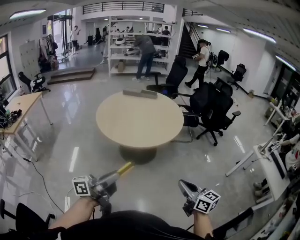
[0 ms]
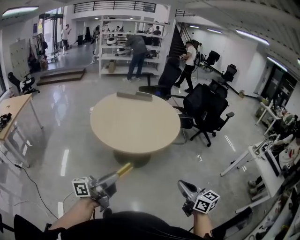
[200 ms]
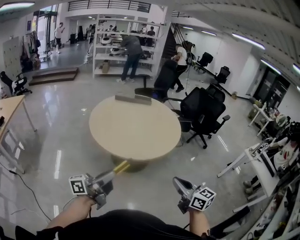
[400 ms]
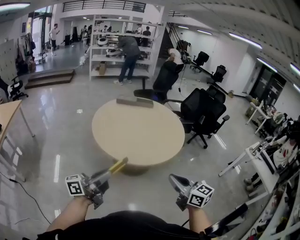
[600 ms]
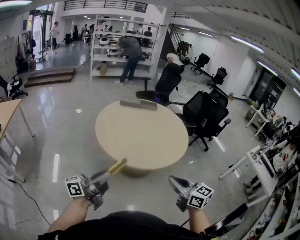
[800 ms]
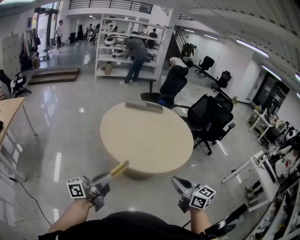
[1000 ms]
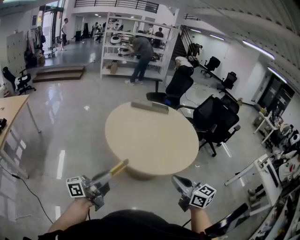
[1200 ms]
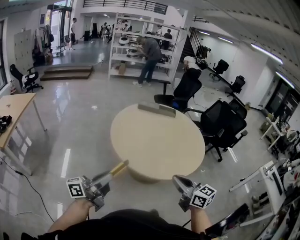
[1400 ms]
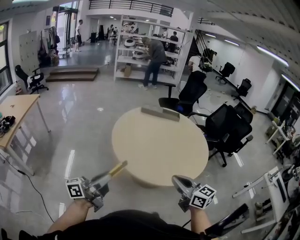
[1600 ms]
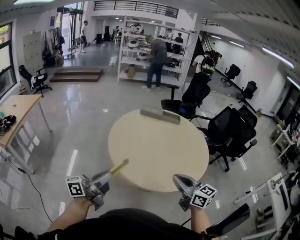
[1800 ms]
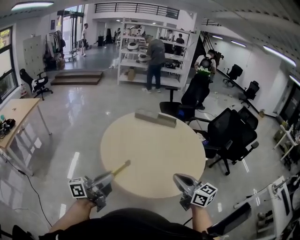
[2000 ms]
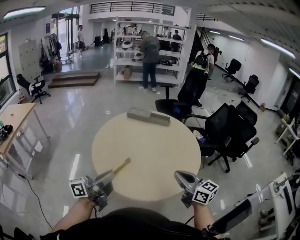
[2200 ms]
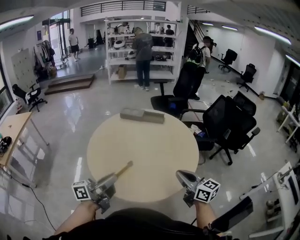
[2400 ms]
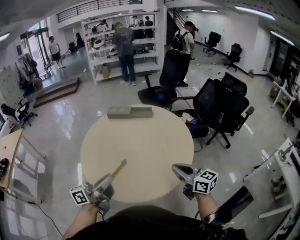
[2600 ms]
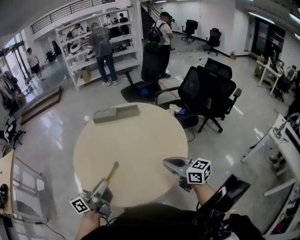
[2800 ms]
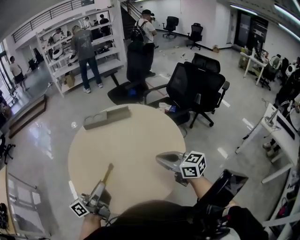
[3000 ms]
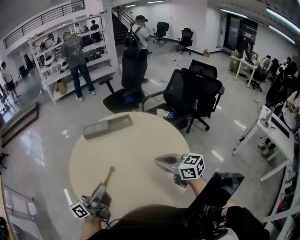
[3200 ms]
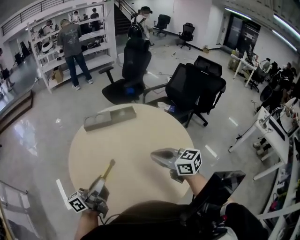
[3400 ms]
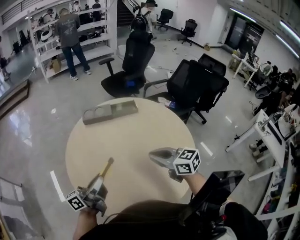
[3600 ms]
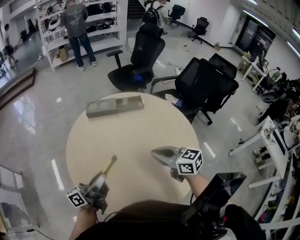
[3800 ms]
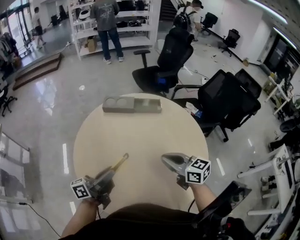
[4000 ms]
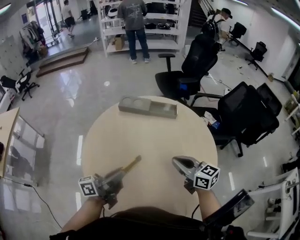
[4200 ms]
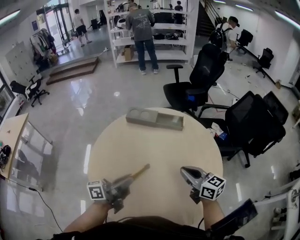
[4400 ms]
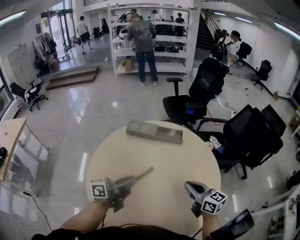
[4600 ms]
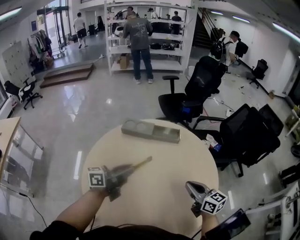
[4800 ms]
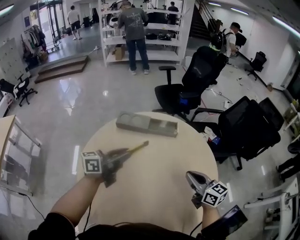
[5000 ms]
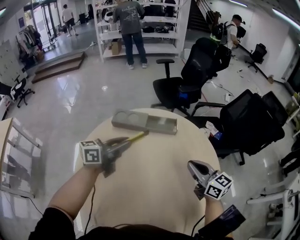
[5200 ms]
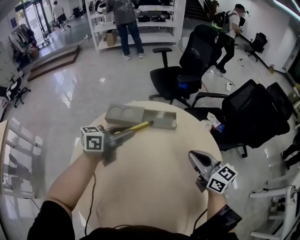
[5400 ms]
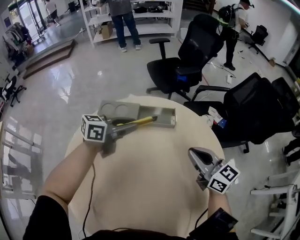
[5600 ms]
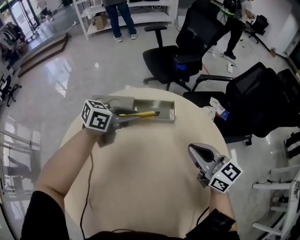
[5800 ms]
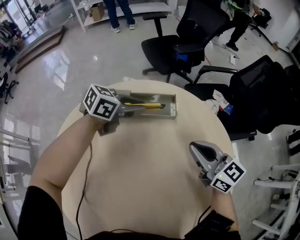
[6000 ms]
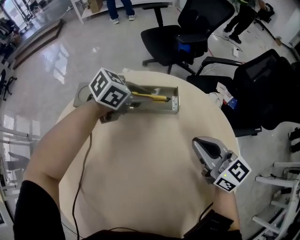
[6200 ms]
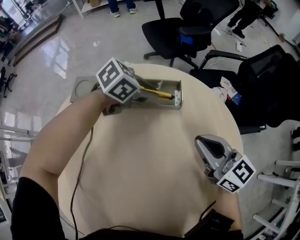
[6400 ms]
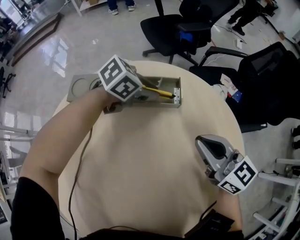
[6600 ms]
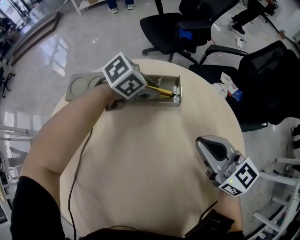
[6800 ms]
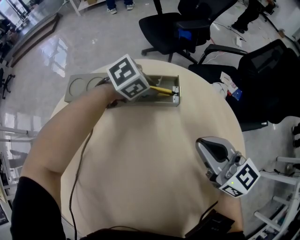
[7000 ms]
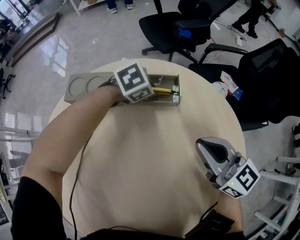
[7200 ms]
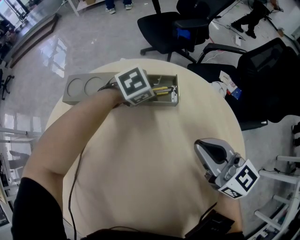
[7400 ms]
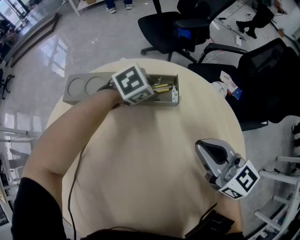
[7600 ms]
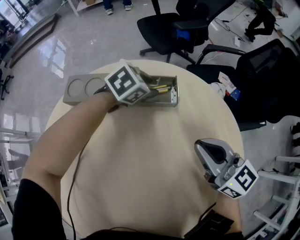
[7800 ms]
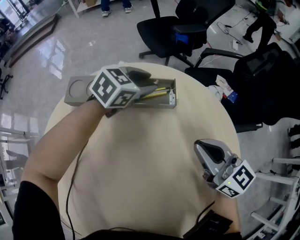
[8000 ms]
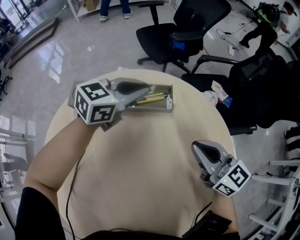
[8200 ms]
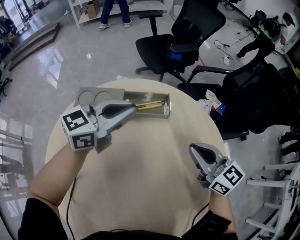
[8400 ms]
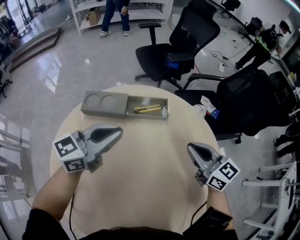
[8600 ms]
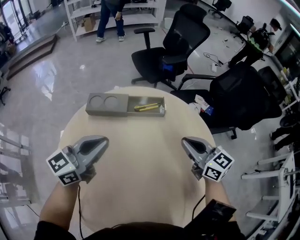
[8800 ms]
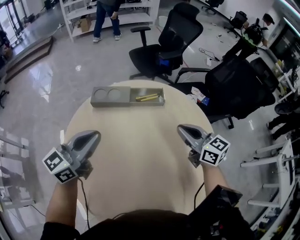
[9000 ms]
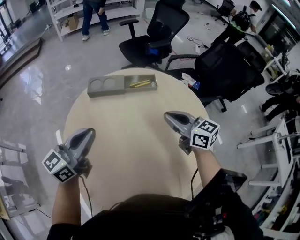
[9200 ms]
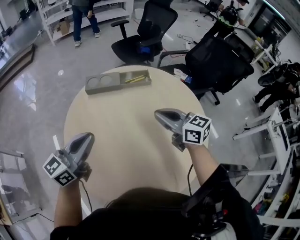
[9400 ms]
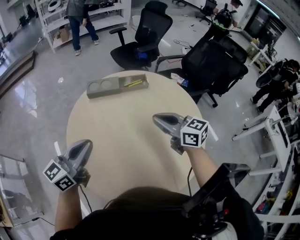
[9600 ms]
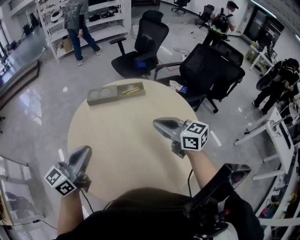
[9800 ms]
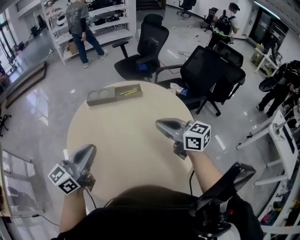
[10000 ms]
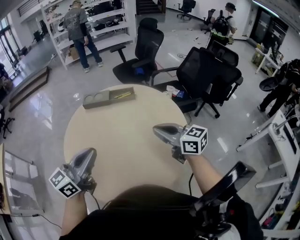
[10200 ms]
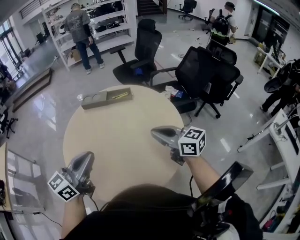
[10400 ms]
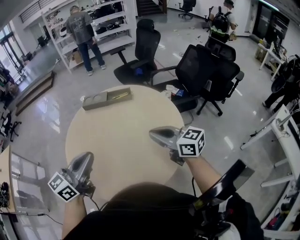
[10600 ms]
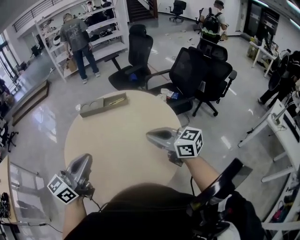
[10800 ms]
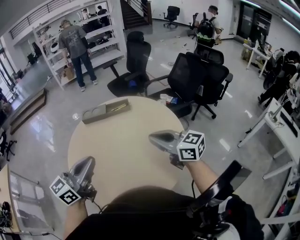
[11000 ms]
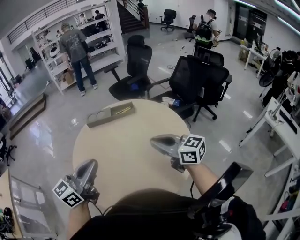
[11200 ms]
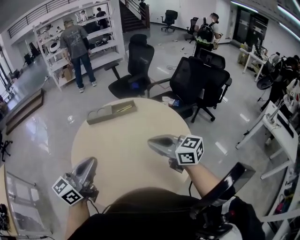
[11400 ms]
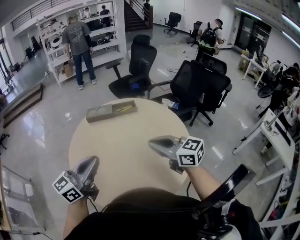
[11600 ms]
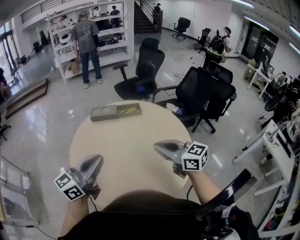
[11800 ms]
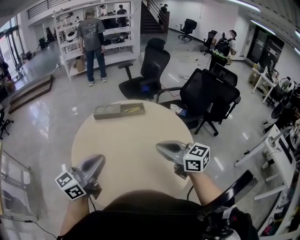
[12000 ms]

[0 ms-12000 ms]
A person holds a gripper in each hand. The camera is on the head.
0 ms to 1600 ms: The pair of grippers is taken to the left and forward, some 50 cm.
1600 ms to 3000 ms: Both grippers move forward and to the right, about 35 cm.
3000 ms to 4400 ms: The grippers both shift forward by about 20 cm.
4400 ms to 6000 ms: The right gripper is displaced forward and downward by approximately 30 cm. Meanwhile the left gripper heads forward, covering some 50 cm, and tilts its fingers some 30 degrees downward.
6000 ms to 7600 ms: The left gripper shifts about 15 cm downward, tilts its fingers about 30 degrees downward, and opens.
7600 ms to 9000 ms: The left gripper travels upward, backward and to the left by roughly 50 cm, points its fingers approximately 60 degrees further upward, and closes up; the right gripper is displaced upward and backward by approximately 20 cm.
9000 ms to 10400 ms: The left gripper moves backward and to the right, some 35 cm. Meanwhile the right gripper travels backward by some 25 cm.
10400 ms to 12000 ms: The grippers both shift to the left by roughly 10 cm.

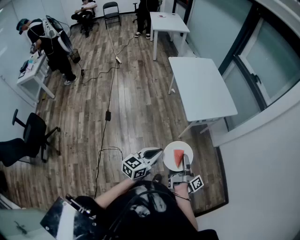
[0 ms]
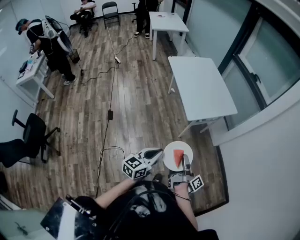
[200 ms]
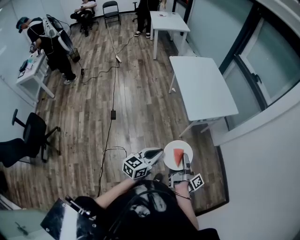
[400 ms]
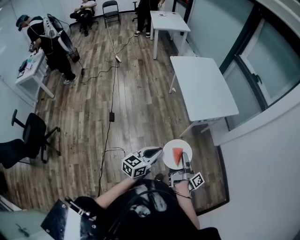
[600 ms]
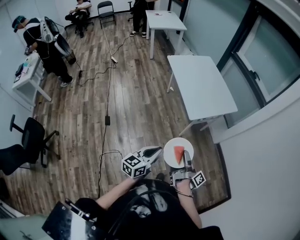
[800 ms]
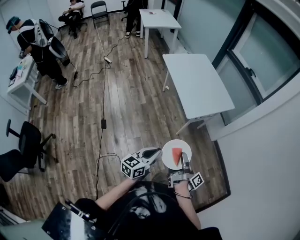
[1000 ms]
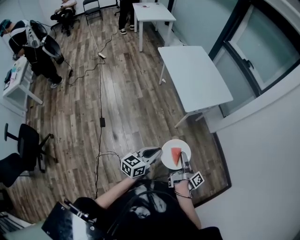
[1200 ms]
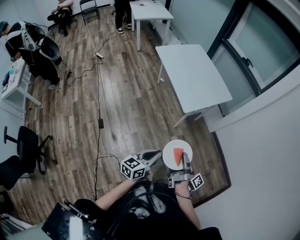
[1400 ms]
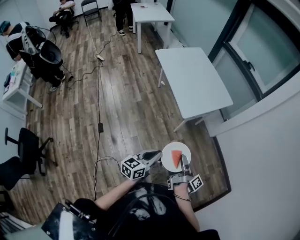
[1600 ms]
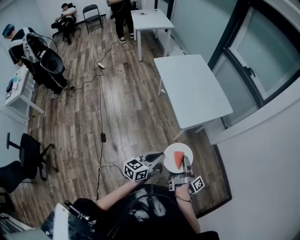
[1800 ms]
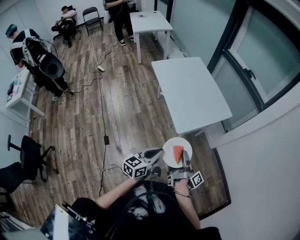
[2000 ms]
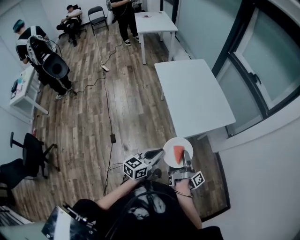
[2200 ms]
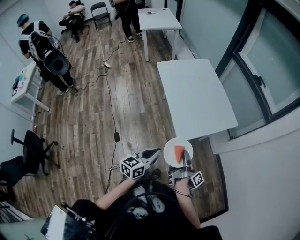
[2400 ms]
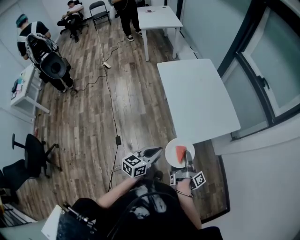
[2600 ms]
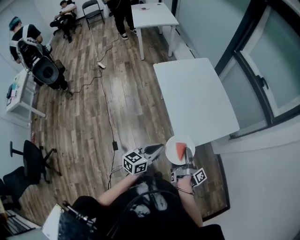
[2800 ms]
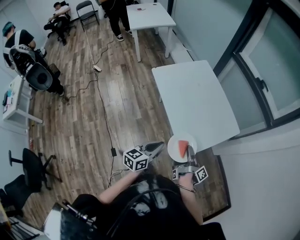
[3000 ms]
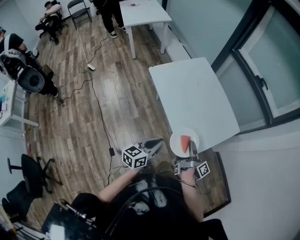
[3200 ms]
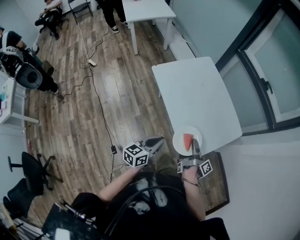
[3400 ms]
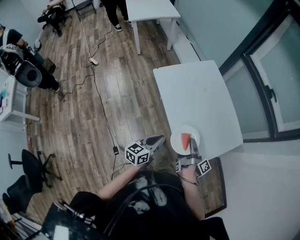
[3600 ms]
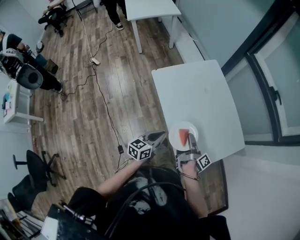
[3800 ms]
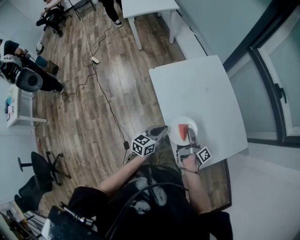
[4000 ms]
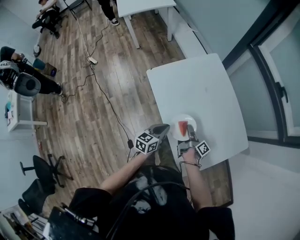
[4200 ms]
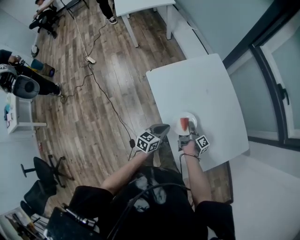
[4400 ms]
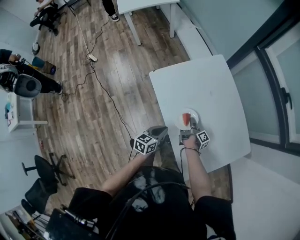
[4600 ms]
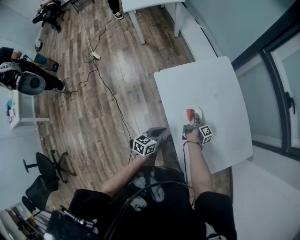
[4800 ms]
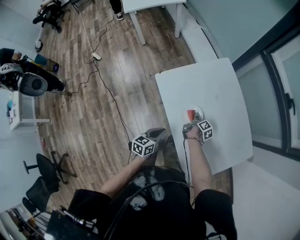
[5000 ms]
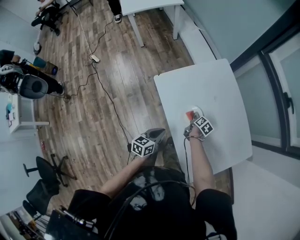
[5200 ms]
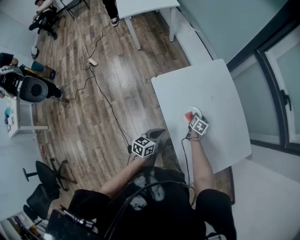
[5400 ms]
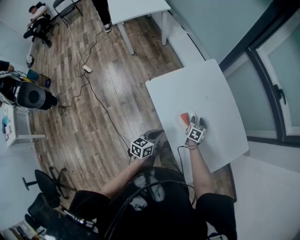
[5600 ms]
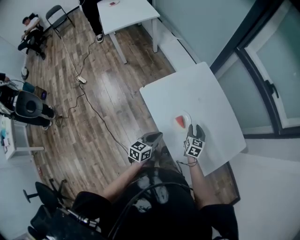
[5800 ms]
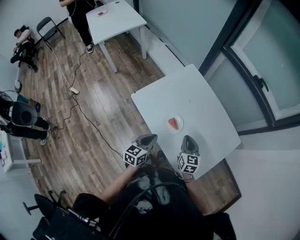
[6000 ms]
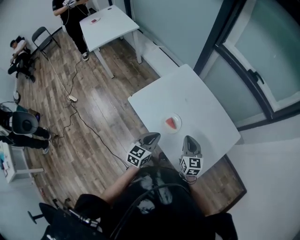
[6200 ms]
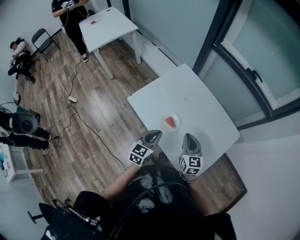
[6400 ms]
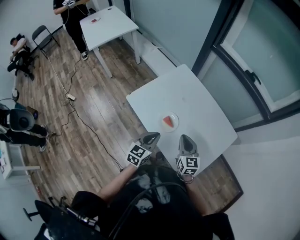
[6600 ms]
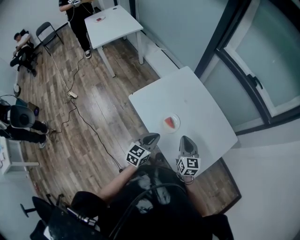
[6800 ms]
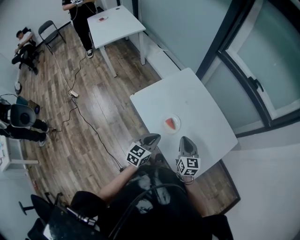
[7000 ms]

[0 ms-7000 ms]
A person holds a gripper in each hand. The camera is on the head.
0 ms to 1400 ms: The left gripper moves approximately 5 cm.
1400 ms to 2800 ms: The left gripper moves about 35 cm.
2800 ms to 4200 ms: The left gripper changes place by about 40 cm.
4200 ms to 5600 ms: The left gripper moves some 5 cm.
5600 ms to 7000 ms: The left gripper moves upward, some 10 cm, and turns by roughly 20 degrees.

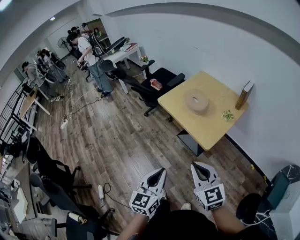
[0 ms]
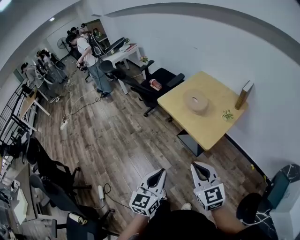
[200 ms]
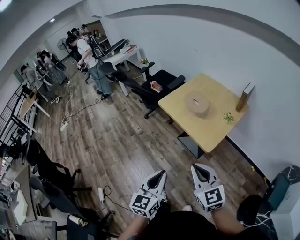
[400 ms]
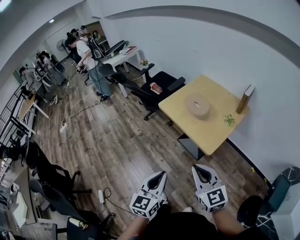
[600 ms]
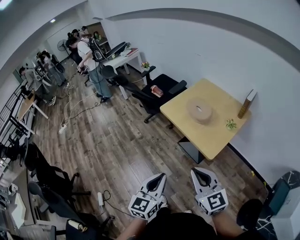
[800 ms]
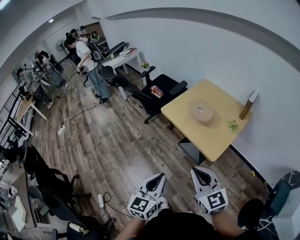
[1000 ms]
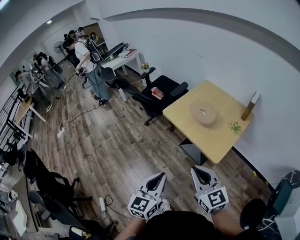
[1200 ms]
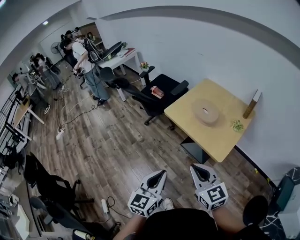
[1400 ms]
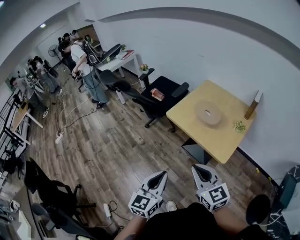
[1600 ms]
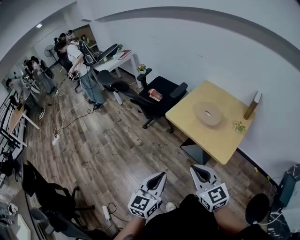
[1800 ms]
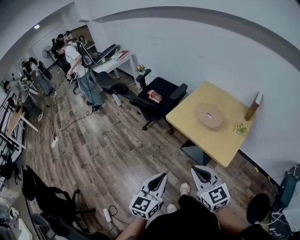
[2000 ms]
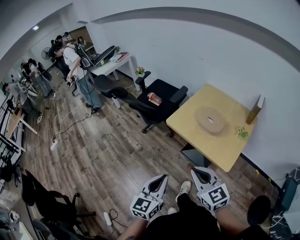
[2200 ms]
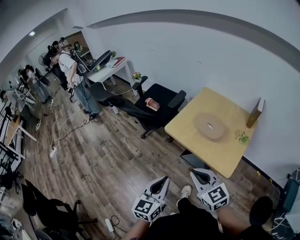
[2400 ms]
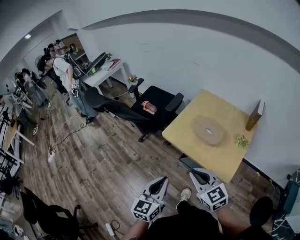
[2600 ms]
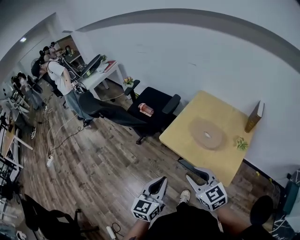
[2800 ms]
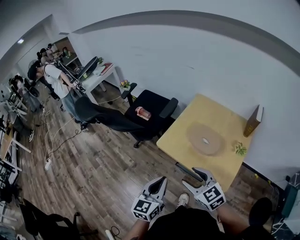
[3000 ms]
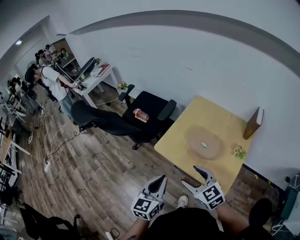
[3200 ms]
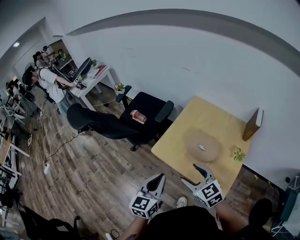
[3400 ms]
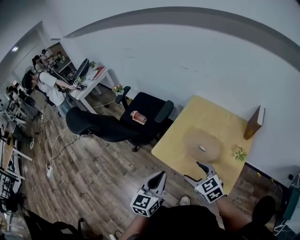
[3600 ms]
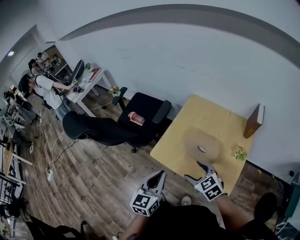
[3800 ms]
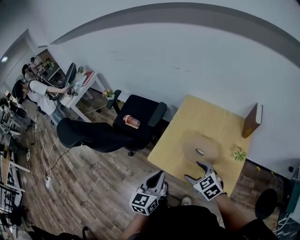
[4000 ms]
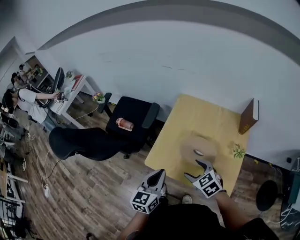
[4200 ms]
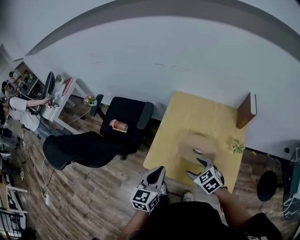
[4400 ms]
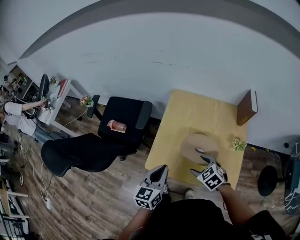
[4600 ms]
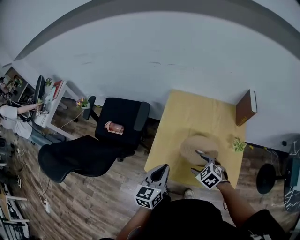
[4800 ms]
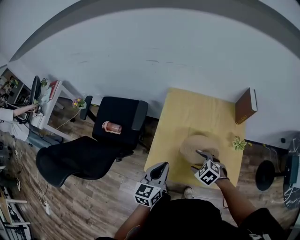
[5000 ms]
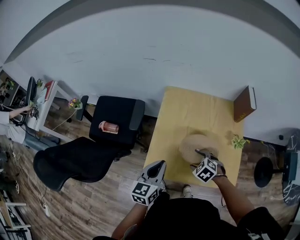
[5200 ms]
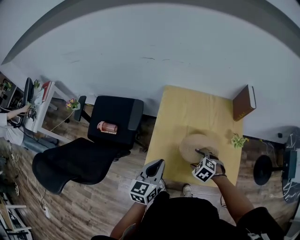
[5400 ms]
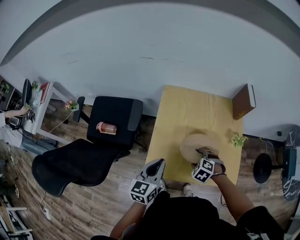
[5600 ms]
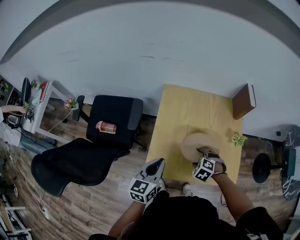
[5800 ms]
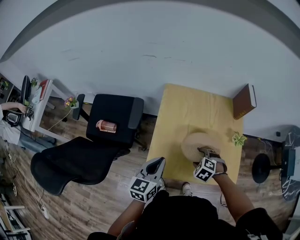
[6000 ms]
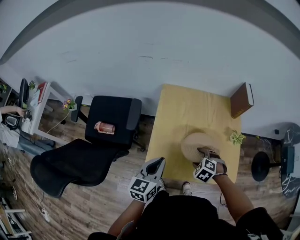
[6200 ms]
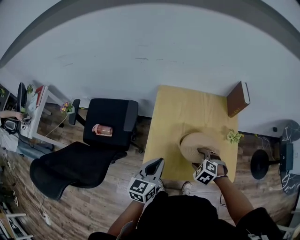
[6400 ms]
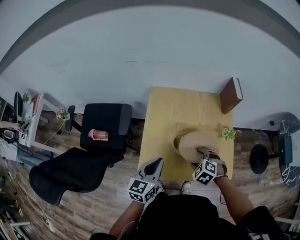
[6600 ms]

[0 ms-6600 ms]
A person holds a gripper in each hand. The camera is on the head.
0 ms to 1600 ms: The two grippers go approximately 15 cm to the left and forward.
1600 ms to 3200 ms: Both grippers move forward, approximately 30 cm. The right gripper opens.
3200 ms to 5000 ms: The left gripper shifts by approximately 25 cm, and turns by roughly 30 degrees. Meanwhile the right gripper changes place by about 25 cm, and points its fingers about 40 degrees further downward.
5000 ms to 6600 ms: There are only small adjustments of the grippers.
